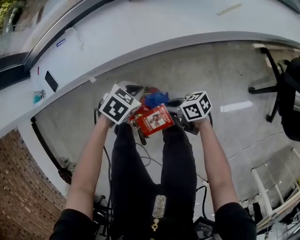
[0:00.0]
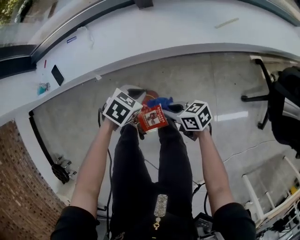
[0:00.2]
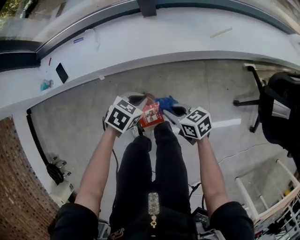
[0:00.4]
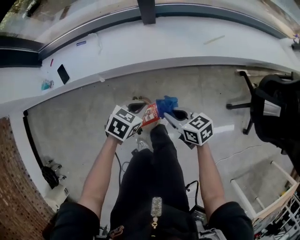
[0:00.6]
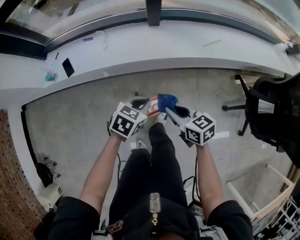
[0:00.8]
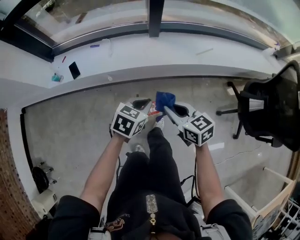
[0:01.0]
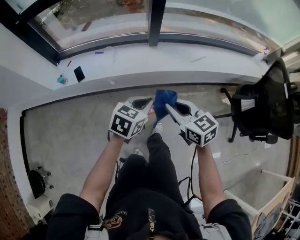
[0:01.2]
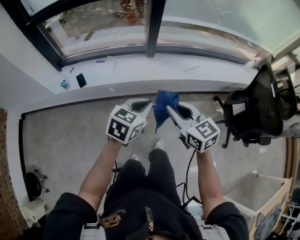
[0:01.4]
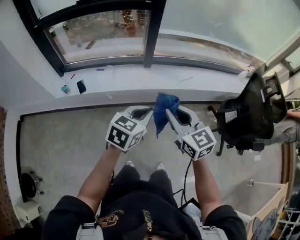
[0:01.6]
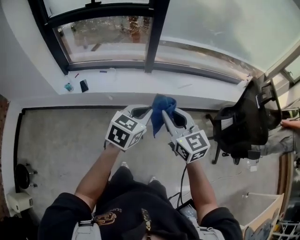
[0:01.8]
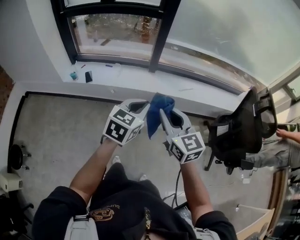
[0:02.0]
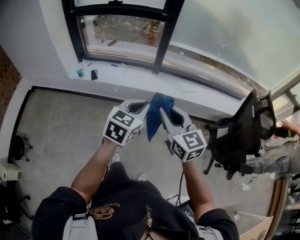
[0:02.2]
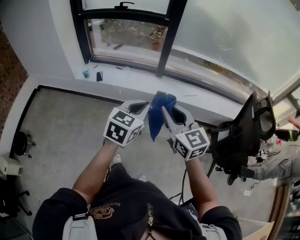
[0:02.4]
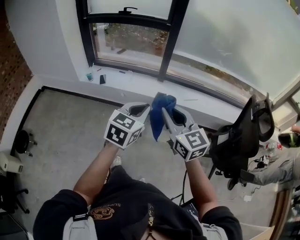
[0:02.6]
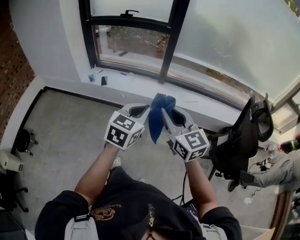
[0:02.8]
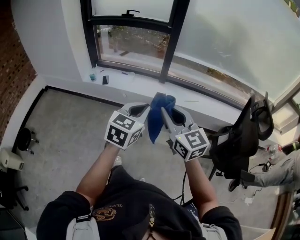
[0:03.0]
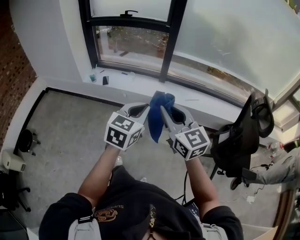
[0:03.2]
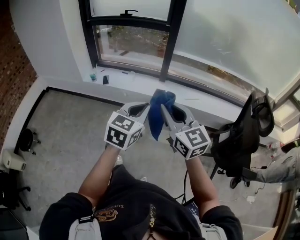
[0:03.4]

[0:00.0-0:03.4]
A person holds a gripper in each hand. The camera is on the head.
0:00.0 to 0:01.6: Both grippers travel together upward, about 50 cm. The right gripper rotates approximately 80 degrees. The left gripper points its fingers about 40 degrees further upward.
0:01.6 to 0:03.4: Both grippers move backward and upward, about 25 cm. The right gripper changes its angle by approximately 20 degrees. Meanwhile the left gripper turns by roughly 30 degrees.

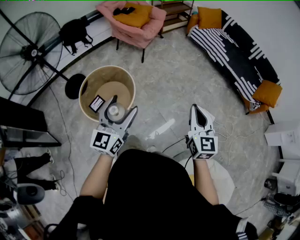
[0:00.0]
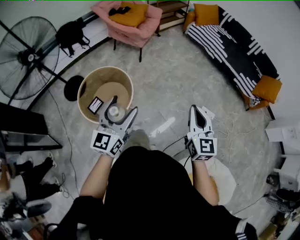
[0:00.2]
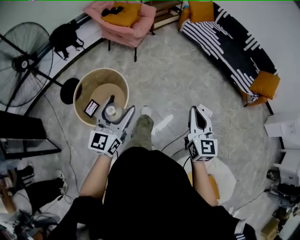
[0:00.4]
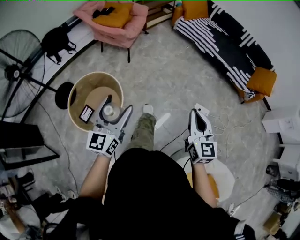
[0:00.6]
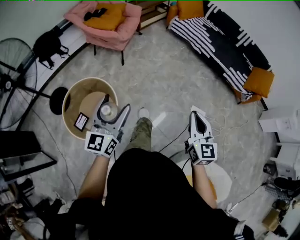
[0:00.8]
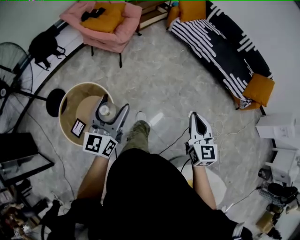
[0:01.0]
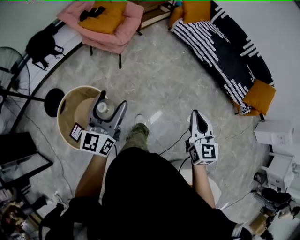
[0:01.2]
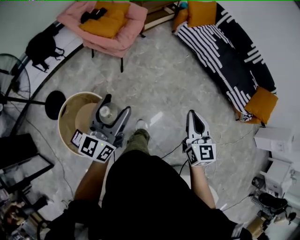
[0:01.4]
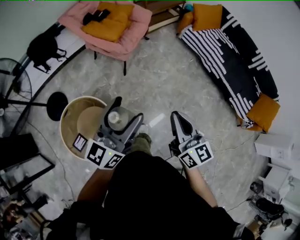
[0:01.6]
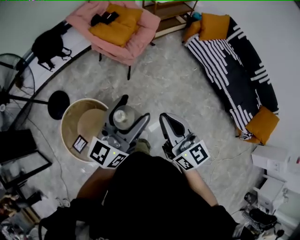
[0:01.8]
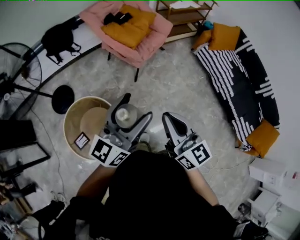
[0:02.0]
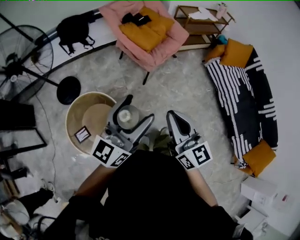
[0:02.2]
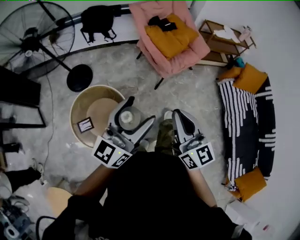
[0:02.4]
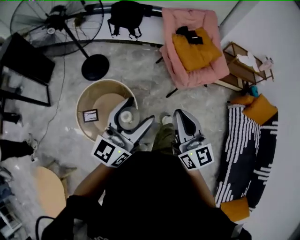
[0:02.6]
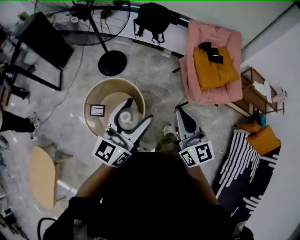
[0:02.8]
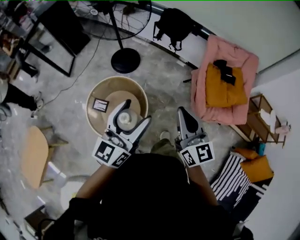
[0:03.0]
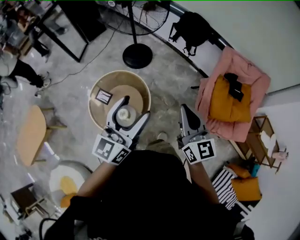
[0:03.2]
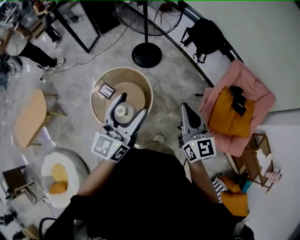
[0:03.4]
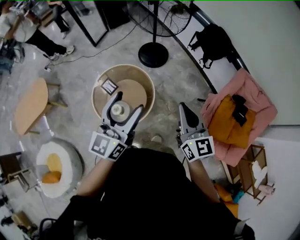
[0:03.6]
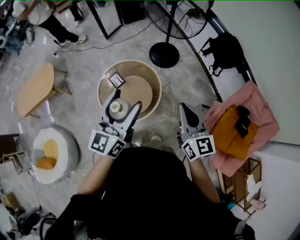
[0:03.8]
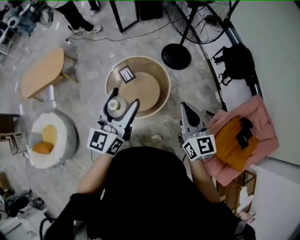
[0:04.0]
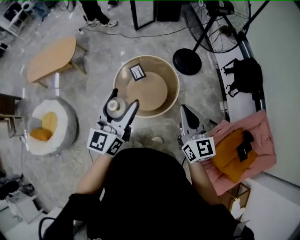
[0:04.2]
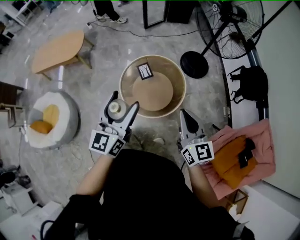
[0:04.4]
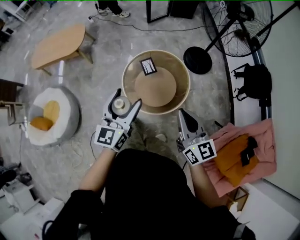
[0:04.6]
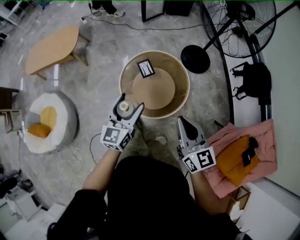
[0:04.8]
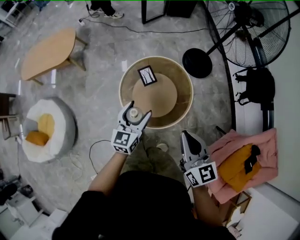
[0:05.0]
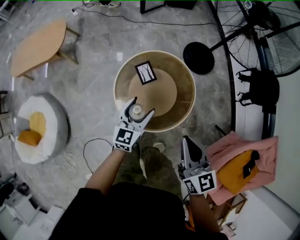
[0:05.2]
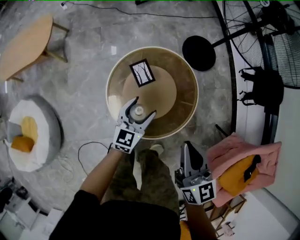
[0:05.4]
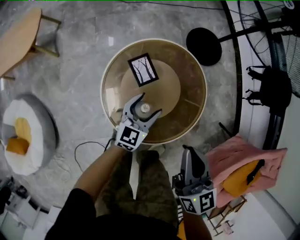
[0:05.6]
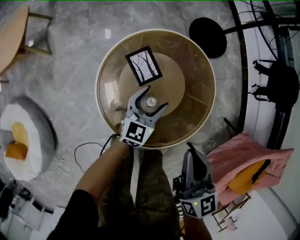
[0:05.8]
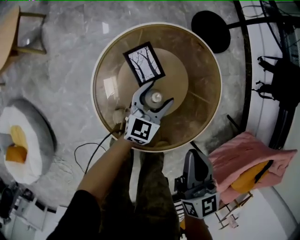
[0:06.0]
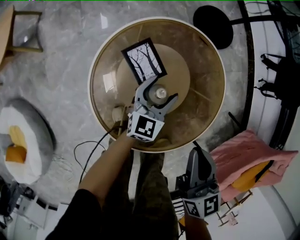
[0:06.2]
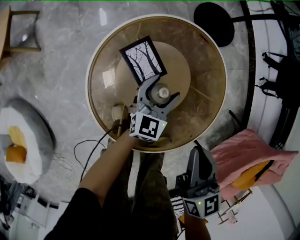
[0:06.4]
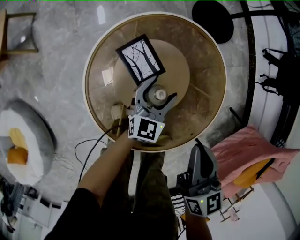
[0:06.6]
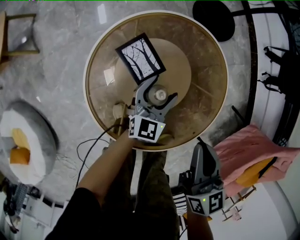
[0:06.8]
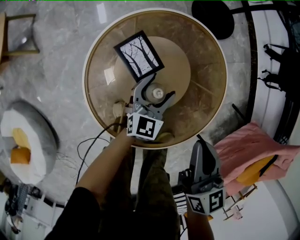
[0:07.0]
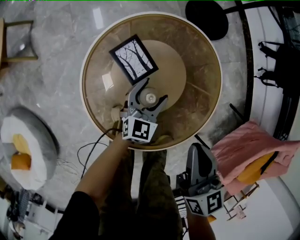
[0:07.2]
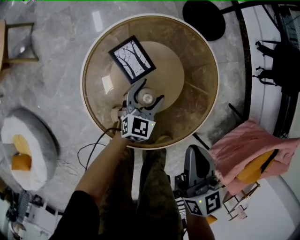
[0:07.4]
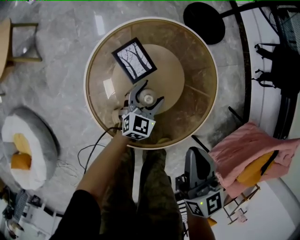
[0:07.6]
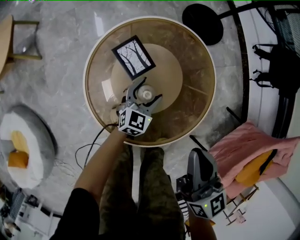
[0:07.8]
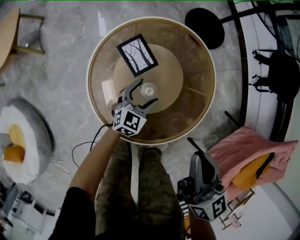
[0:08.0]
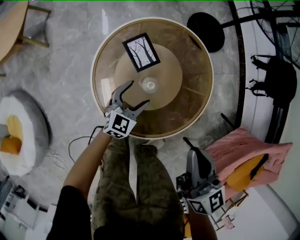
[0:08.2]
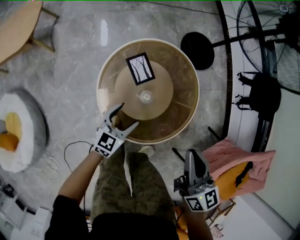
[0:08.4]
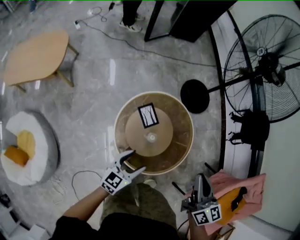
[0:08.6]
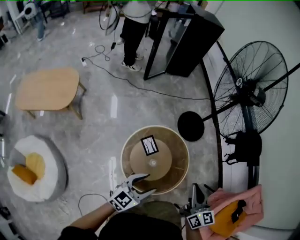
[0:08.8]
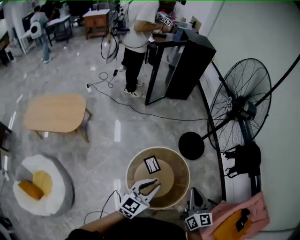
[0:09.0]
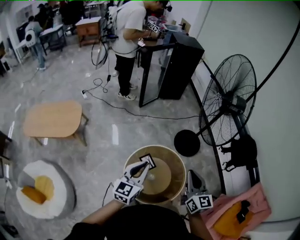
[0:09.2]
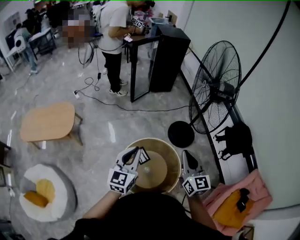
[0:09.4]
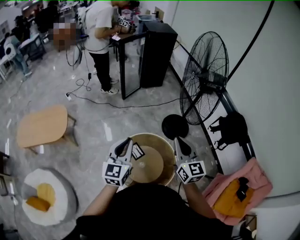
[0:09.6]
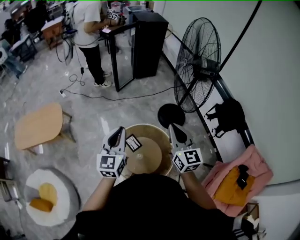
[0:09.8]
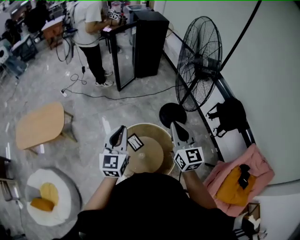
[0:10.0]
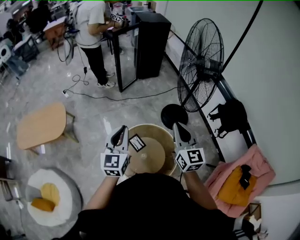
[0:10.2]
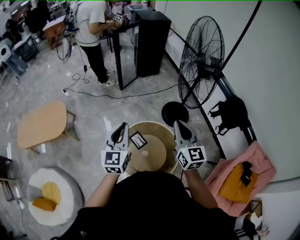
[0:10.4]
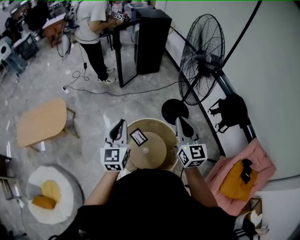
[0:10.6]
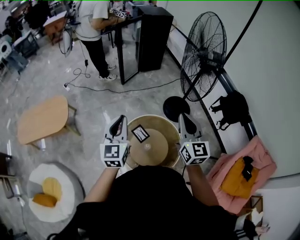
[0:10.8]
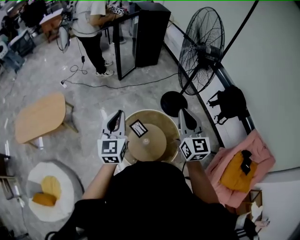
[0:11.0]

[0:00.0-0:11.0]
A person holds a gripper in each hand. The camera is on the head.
0:00.0 to 0:01.6: The pair of grippers is taken forward, roughly 50 cm. The right gripper turns by some 30 degrees.
0:01.6 to 0:03.2: The right gripper moves some 50 cm, and swivels approximately 80 degrees, while the left gripper changes place by roughly 30 cm, and rotates roughly 80 degrees.
0:03.2 to 0:04.8: The left gripper moves roughly 30 cm, and changes its angle by about 50 degrees. Meanwhile the right gripper changes place by roughly 25 cm, and turns by roughly 50 degrees.
0:04.8 to 0:06.2: The two grippers go about 50 cm downward and forward. The right gripper swivels roughly 30 degrees. The left gripper rotates about 20 degrees.
0:06.2 to 0:07.8: The right gripper travels upward by approximately 5 cm. Meanwhile the left gripper shifts by some 5 cm.
0:07.8 to 0:09.4: The right gripper shifts some 40 cm upward, and swivels roughly 30 degrees. The left gripper travels upward by roughly 70 cm, swivels some 30 degrees, and closes.
0:09.4 to 0:11.0: The left gripper goes some 5 cm to the left.

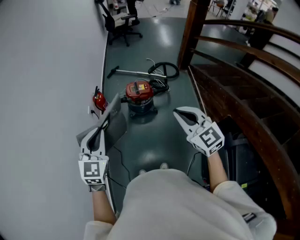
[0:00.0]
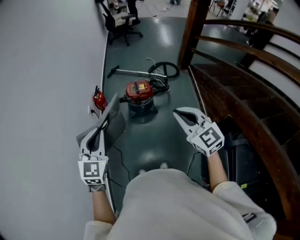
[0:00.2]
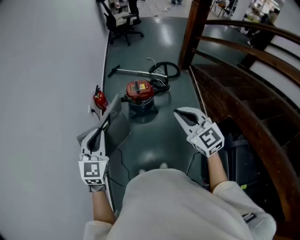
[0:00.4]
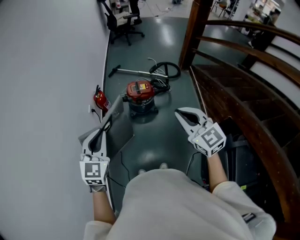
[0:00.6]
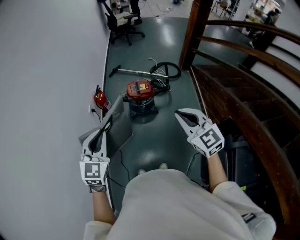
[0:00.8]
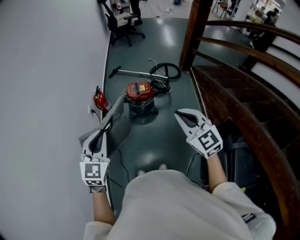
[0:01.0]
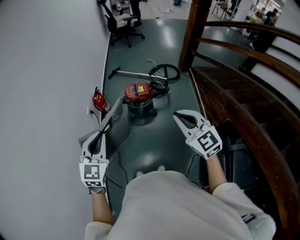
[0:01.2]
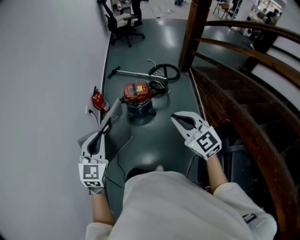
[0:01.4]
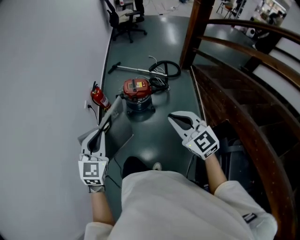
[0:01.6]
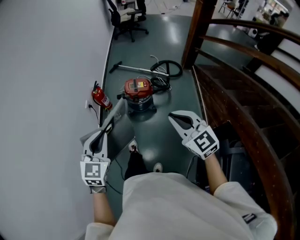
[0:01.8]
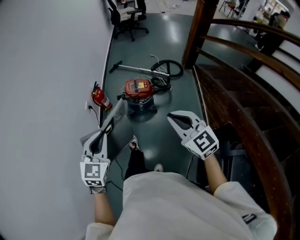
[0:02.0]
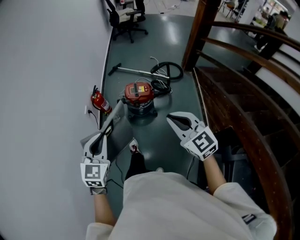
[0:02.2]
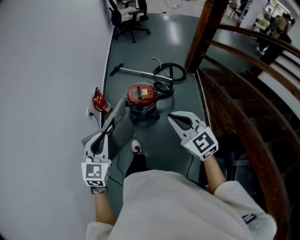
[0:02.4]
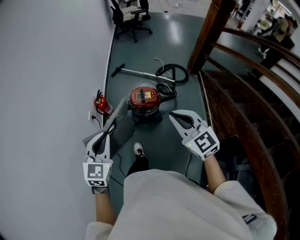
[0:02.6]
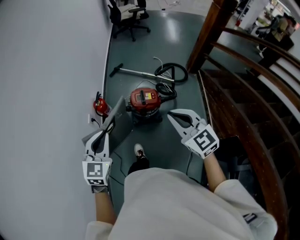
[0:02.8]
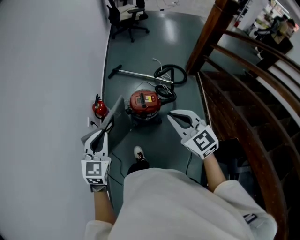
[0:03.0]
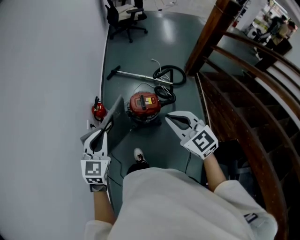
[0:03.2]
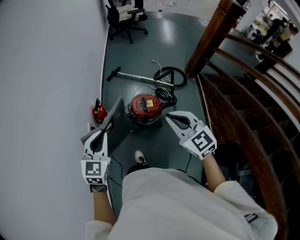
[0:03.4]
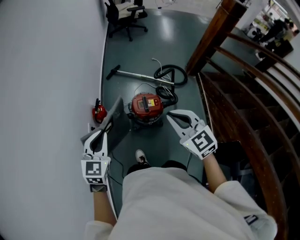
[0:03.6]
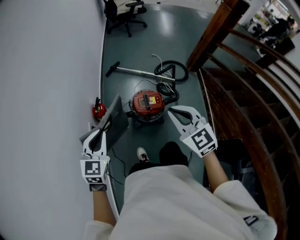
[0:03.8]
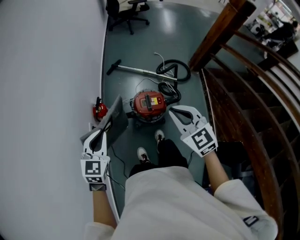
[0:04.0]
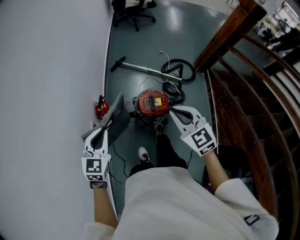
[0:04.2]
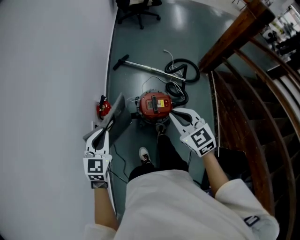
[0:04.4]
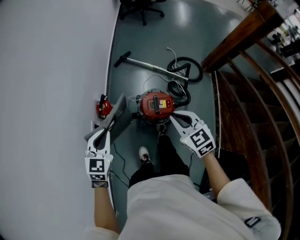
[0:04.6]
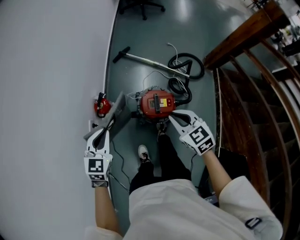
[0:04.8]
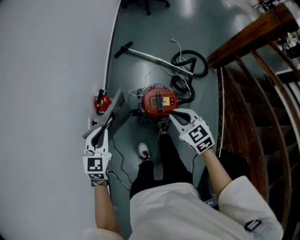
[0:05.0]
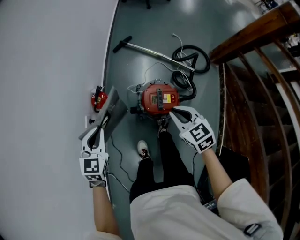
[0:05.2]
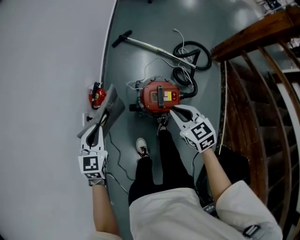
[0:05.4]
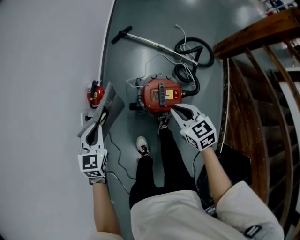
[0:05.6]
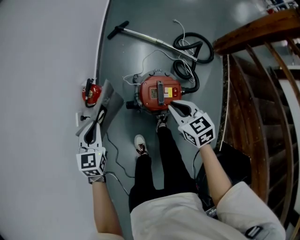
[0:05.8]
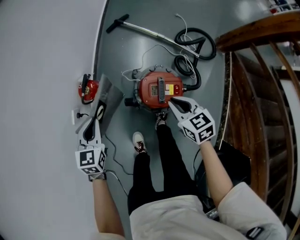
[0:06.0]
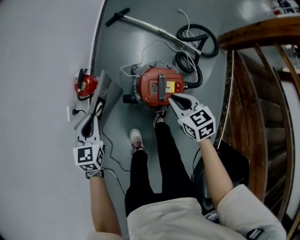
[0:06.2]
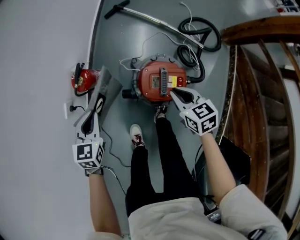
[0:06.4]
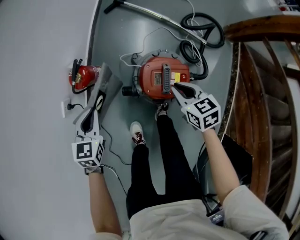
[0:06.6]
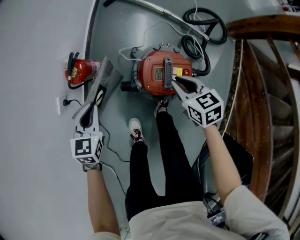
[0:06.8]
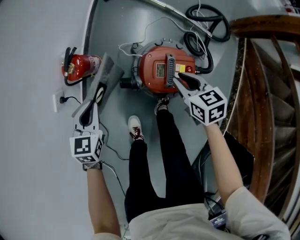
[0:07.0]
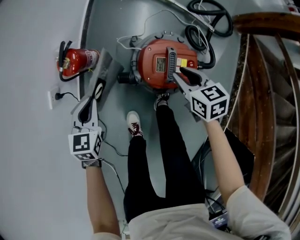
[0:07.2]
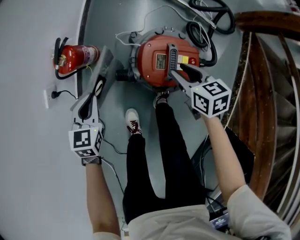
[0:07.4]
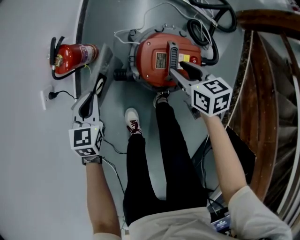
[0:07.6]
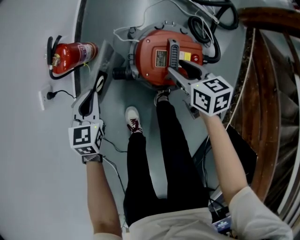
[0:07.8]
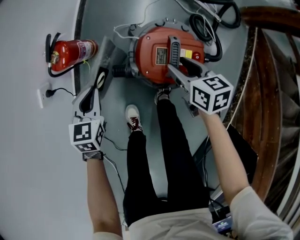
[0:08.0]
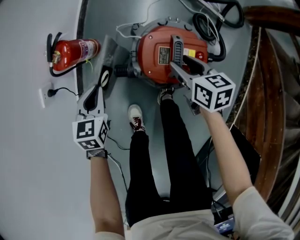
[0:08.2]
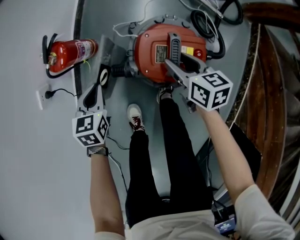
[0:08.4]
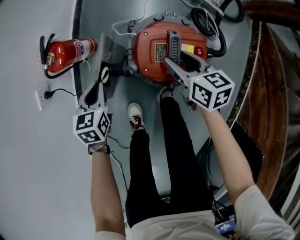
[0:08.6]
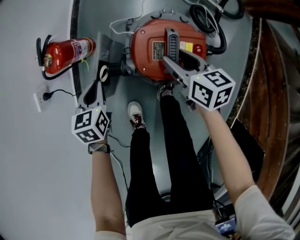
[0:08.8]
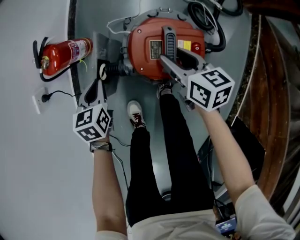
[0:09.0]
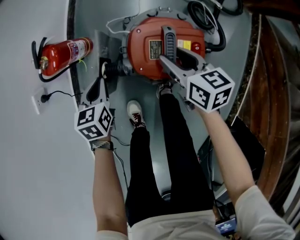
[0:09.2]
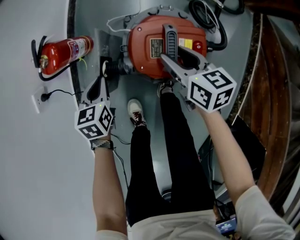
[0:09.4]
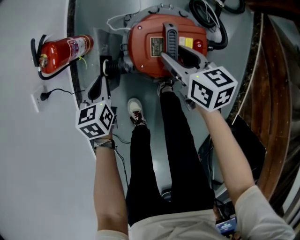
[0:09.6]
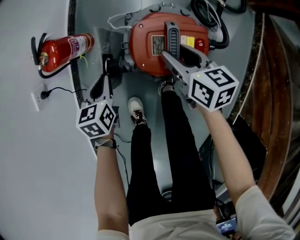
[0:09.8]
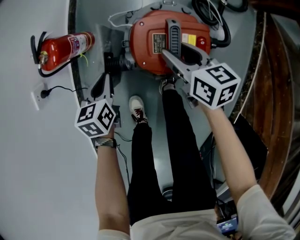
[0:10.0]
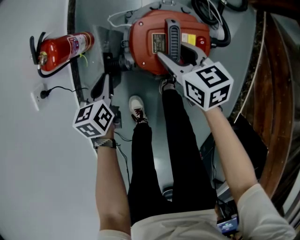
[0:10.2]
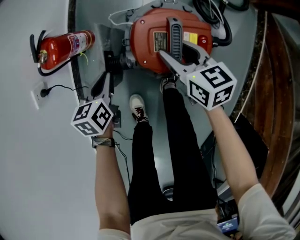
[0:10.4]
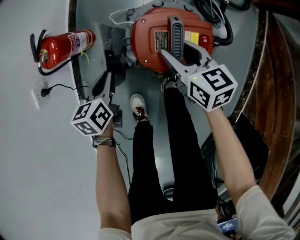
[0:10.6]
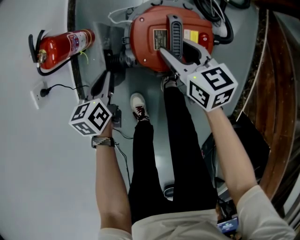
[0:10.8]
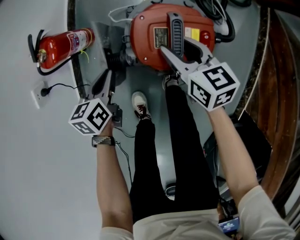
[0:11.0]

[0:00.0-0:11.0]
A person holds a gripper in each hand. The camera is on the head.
0:00.0 to 0:01.6: The left gripper travels to the right by about 5 cm. The right gripper ends up approximately 5 cm from where it was.
0:01.6 to 0:03.2: The grippers both shift forward by roughly 30 cm.
0:03.2 to 0:04.8: Both grippers move forward and downward, some 25 cm. The right gripper swivels approximately 20 degrees.
0:04.8 to 0:06.2: Both grippers travel together downward, approximately 25 cm.
0:06.2 to 0:07.8: Both grippers travel together downward, about 15 cm. The right gripper opens its fingers.
0:07.8 to 0:09.4: The left gripper shifts about 5 cm downward.
0:09.4 to 0:11.0: The grippers make only small movements.
